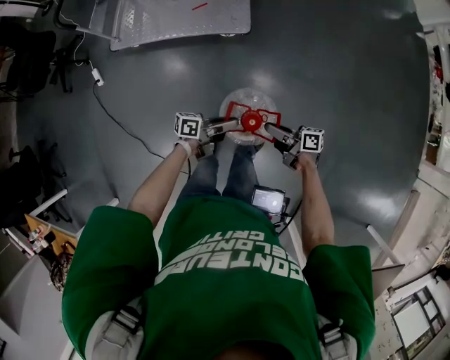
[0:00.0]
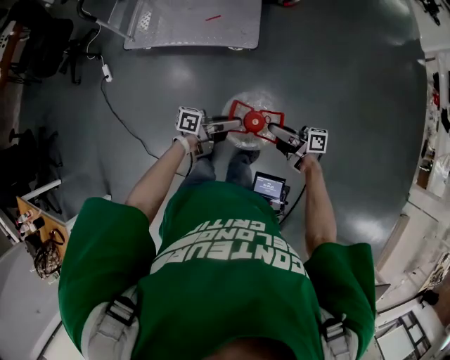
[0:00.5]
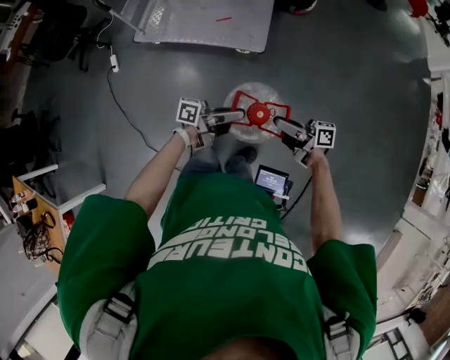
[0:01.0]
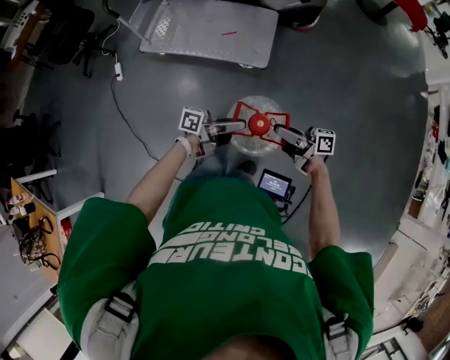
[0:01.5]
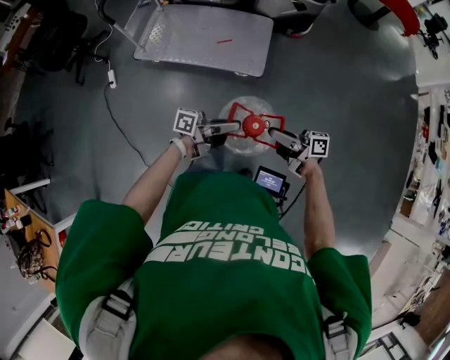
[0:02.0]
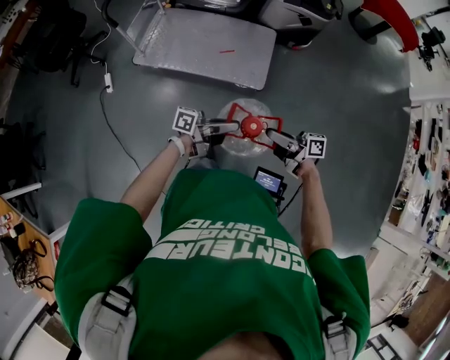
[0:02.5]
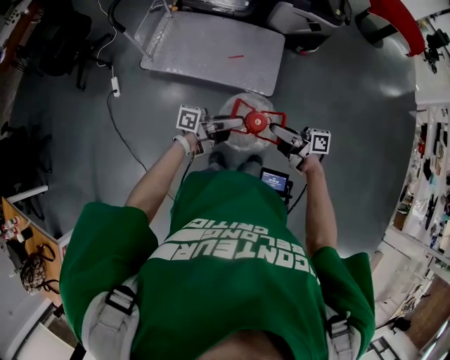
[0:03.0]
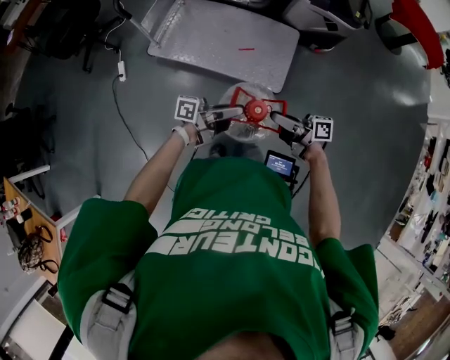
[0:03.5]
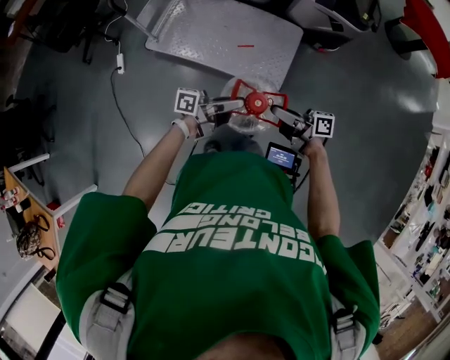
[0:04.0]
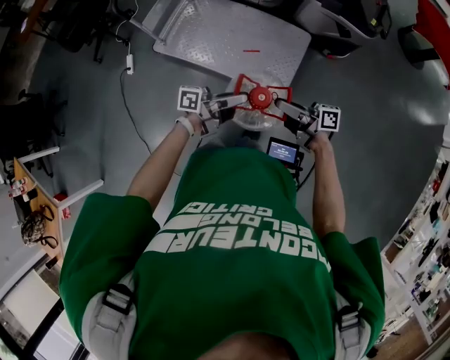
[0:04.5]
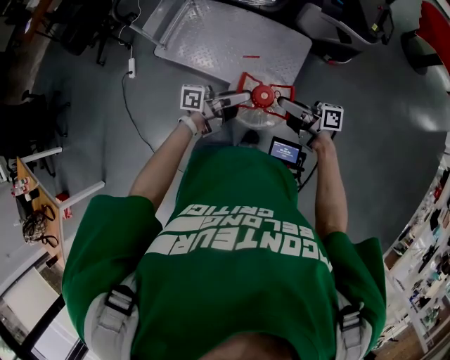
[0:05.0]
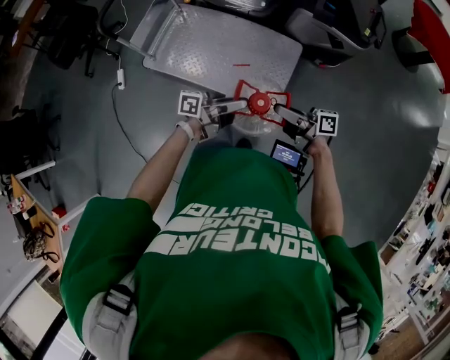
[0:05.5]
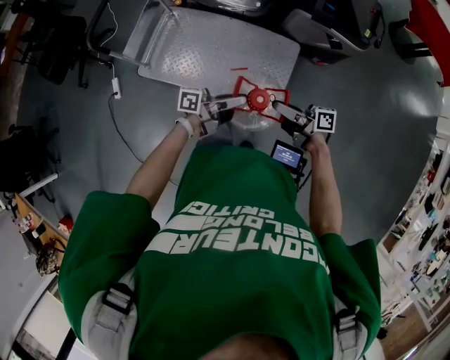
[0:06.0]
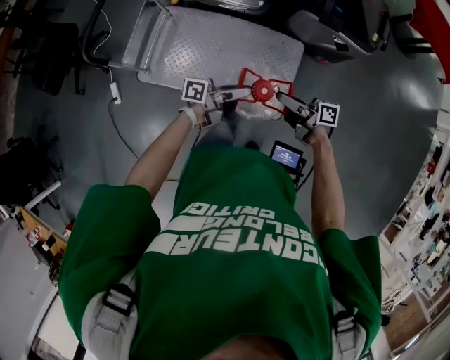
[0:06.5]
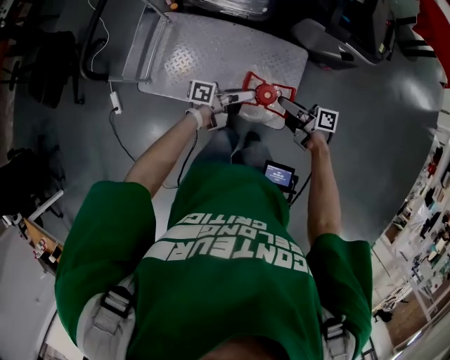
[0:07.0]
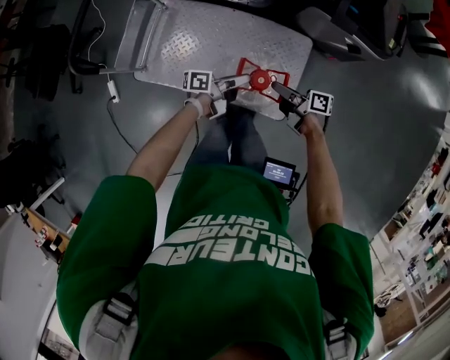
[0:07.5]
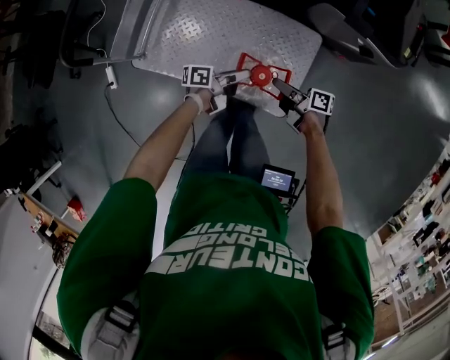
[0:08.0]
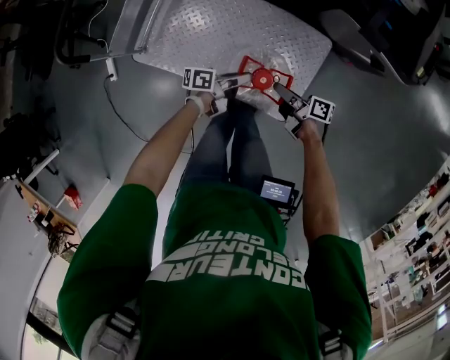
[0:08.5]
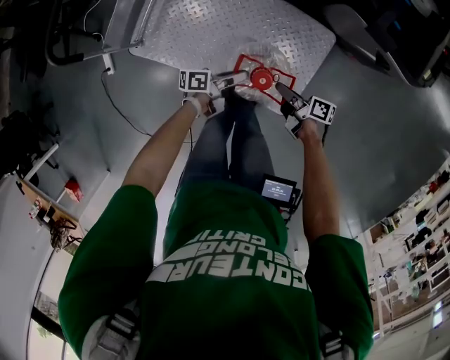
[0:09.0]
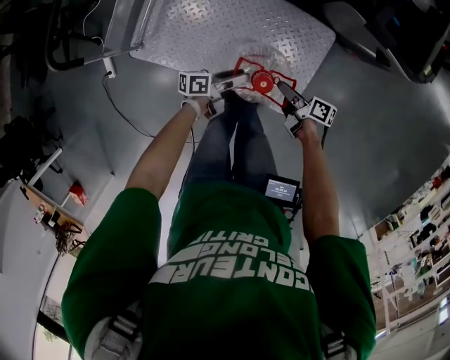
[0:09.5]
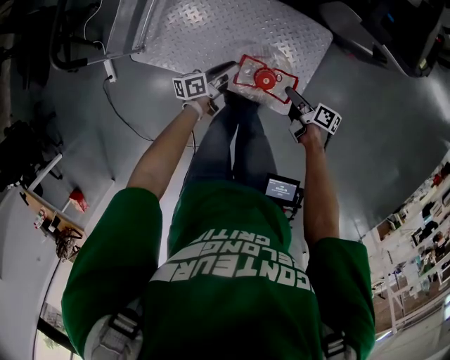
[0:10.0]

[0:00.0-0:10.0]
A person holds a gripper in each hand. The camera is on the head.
0:00.0 to 0:02.0: The two grippers go about 15 cm upward.
0:02.0 to 0:04.0: The left gripper moves approximately 25 cm; the right gripper changes place by approximately 25 cm.
0:04.0 to 0:06.0: The left gripper ends up some 25 cm from where it was; the right gripper changes place by roughly 25 cm.
0:06.0 to 0:08.0: The right gripper moves roughly 25 cm. Meanwhile the left gripper shifts by some 30 cm, and swivels some 20 degrees.
0:08.0 to 0:10.0: The right gripper heads downward and to the right, covering some 10 cm, turns by some 20 degrees, and opens up; the left gripper shifts roughly 10 cm downward and to the left, and changes its angle by approximately 20 degrees.

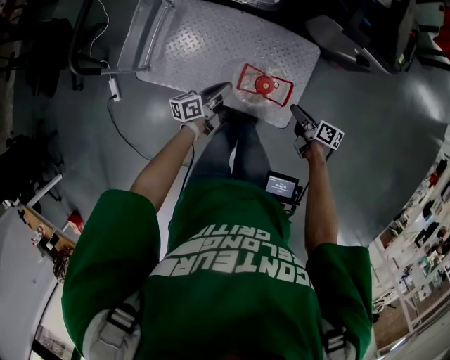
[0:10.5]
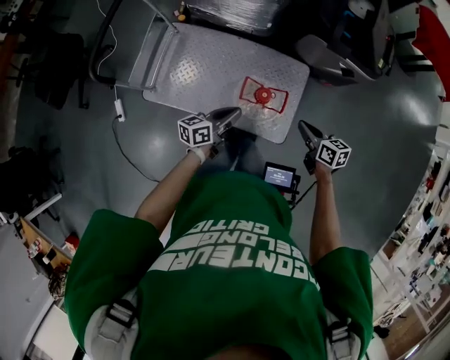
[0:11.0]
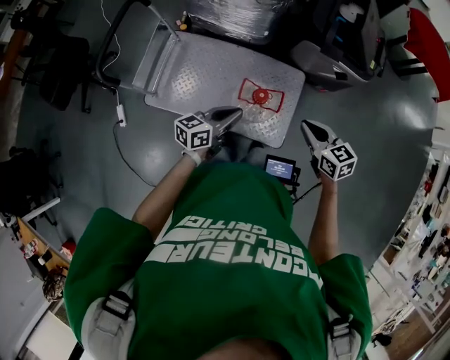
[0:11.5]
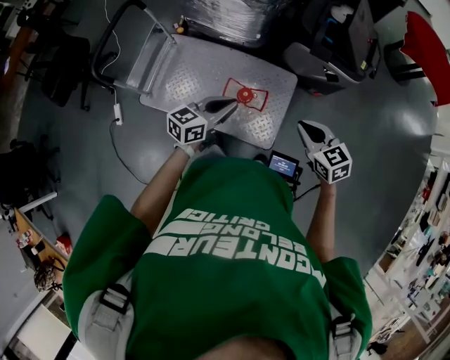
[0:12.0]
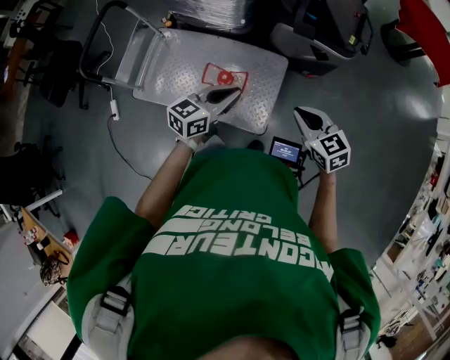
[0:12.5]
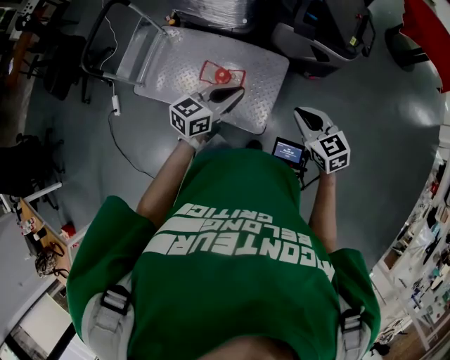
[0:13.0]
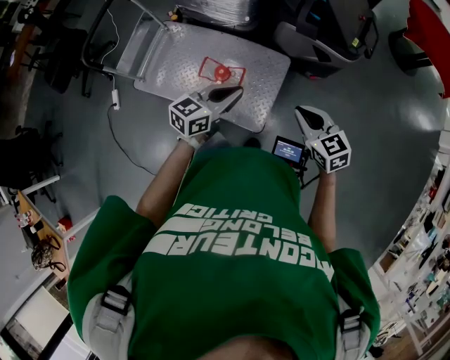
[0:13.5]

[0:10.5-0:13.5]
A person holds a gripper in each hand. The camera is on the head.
0:10.5 to 0:12.0: Both grippers move upward, approximately 25 cm. The left gripper turns by roughly 40 degrees; the right gripper rolls counterclockwise, seen from behind, by approximately 70 degrees, and closes up.
0:12.0 to 0:13.5: The grippers both shift to the right by approximately 15 cm.

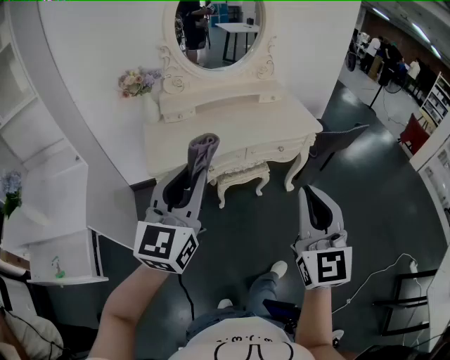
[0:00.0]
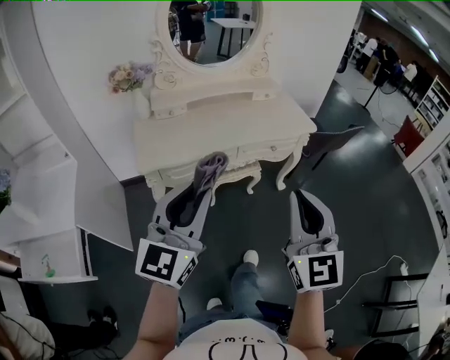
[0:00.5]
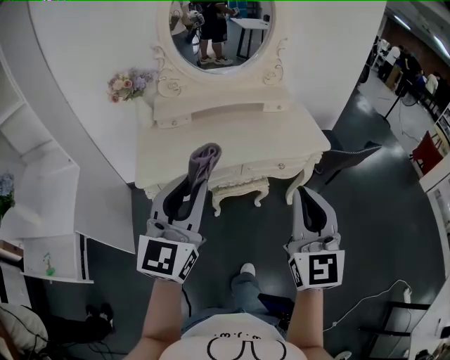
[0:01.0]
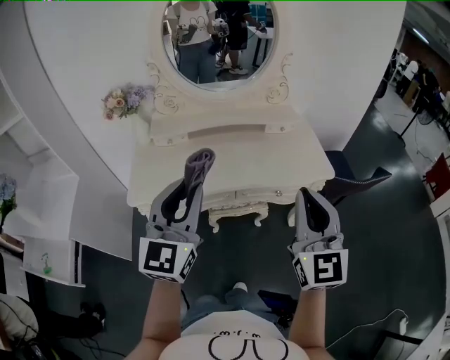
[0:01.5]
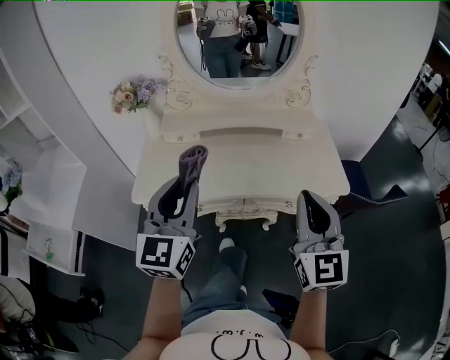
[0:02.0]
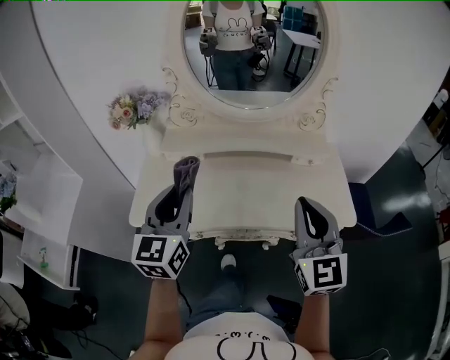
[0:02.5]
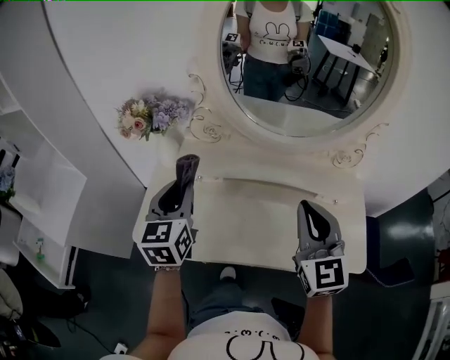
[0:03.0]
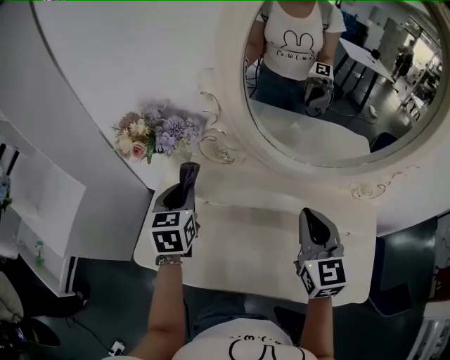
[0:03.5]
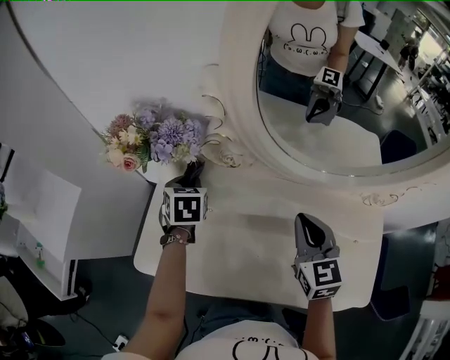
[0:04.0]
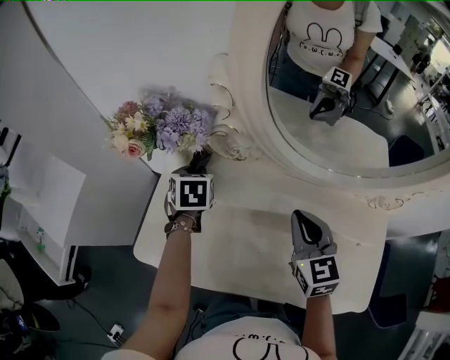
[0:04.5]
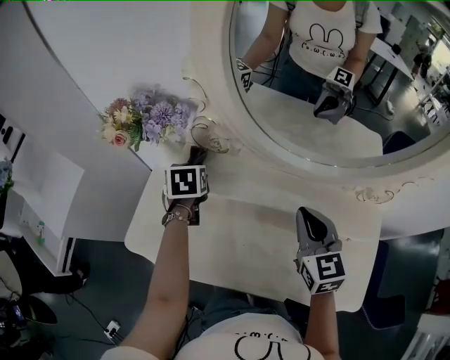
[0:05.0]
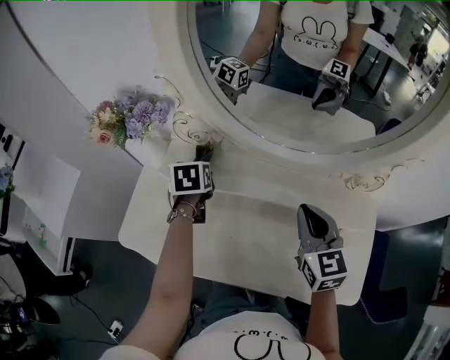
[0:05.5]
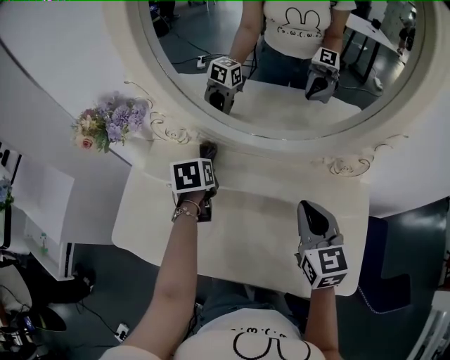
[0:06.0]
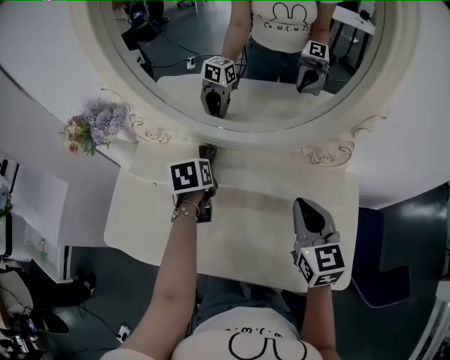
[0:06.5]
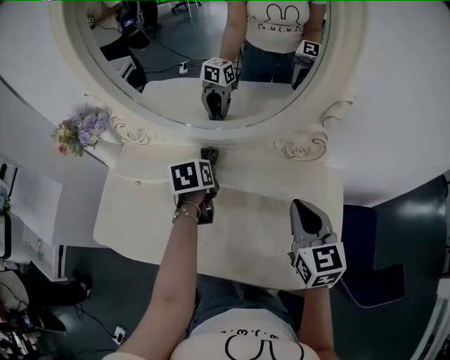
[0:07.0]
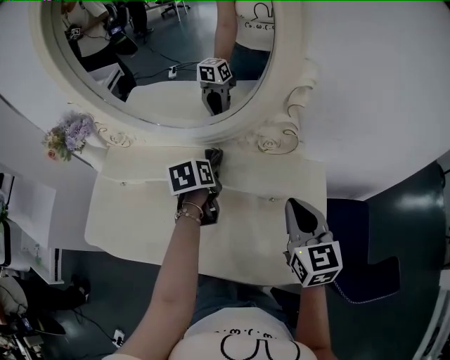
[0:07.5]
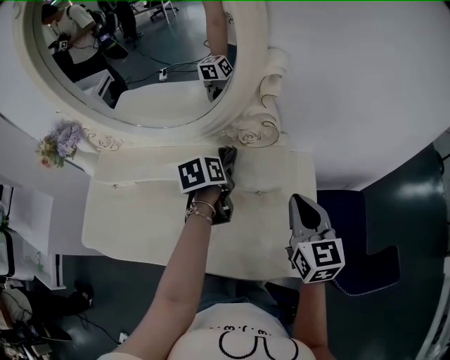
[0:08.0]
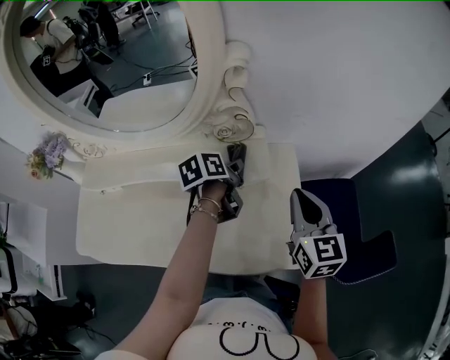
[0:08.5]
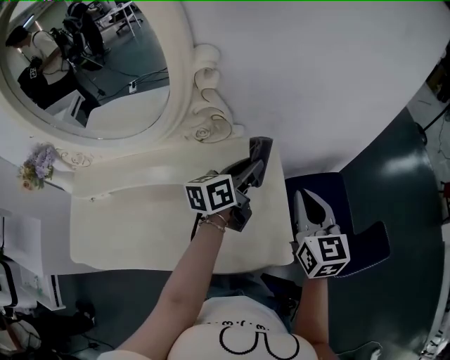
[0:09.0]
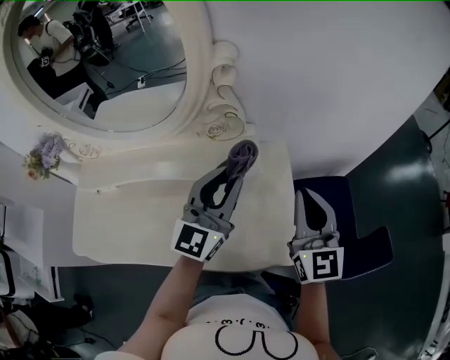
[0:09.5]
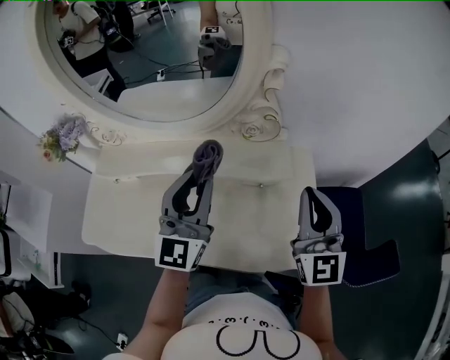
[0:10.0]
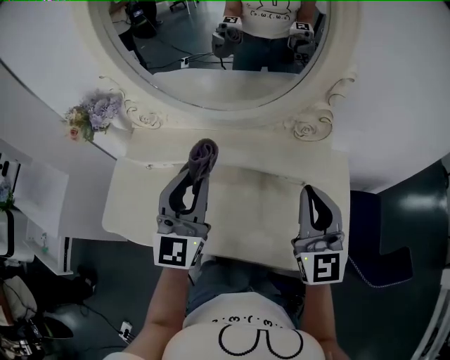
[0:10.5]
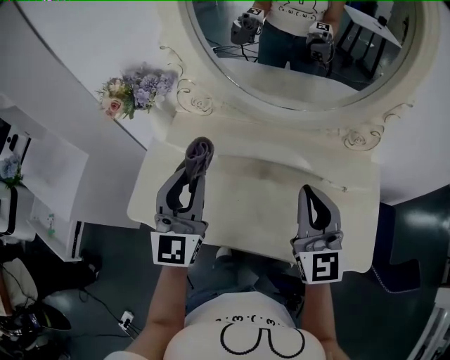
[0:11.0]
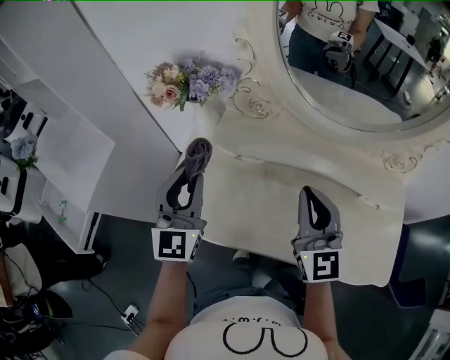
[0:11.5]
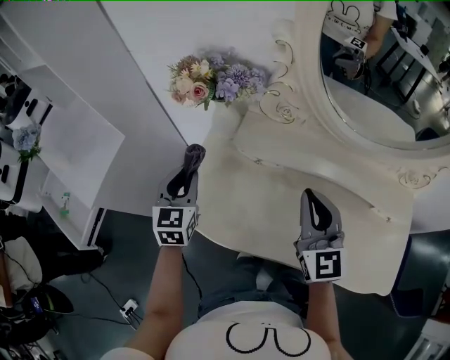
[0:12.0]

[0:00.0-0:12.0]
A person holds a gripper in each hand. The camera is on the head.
0:00.0 to 0:02.0: The grippers both shift forward by some 30 cm. The left gripper rotates some 20 degrees.
0:02.0 to 0:04.0: Both grippers are carried forward, some 50 cm. The left gripper travels downward by roughly 25 cm, and tips its fingers downward by about 50 degrees. The right gripper rotates roughly 30 degrees.
0:04.0 to 0:06.0: The left gripper is displaced to the right by about 20 cm. The right gripper travels to the right and backward by roughly 20 cm.
0:06.0 to 0:08.0: Both grippers move to the right, approximately 30 cm.
0:08.0 to 0:10.0: The left gripper moves upward and backward, some 25 cm, moves about 20 cm to the right and comes back, and points its fingers some 50 degrees further upward; the right gripper travels upward by approximately 10 cm, moves approximately 10 cm to the right and comes back, and rotates some 30 degrees.
0:10.0 to 0:12.0: The pair of grippers is taken about 60 cm. The right gripper swivels some 30 degrees; the left gripper angles its fingers downward, by roughly 30 degrees.

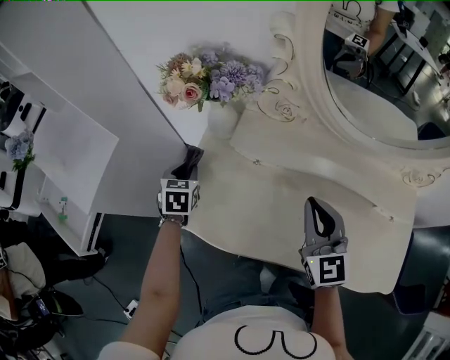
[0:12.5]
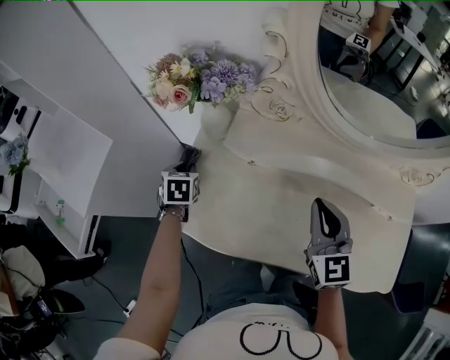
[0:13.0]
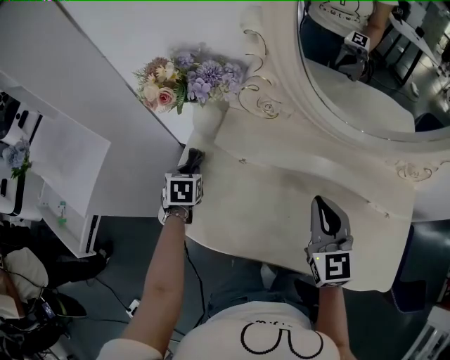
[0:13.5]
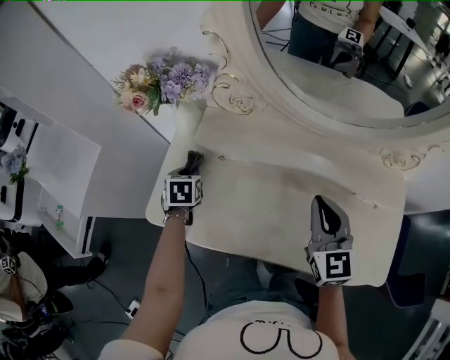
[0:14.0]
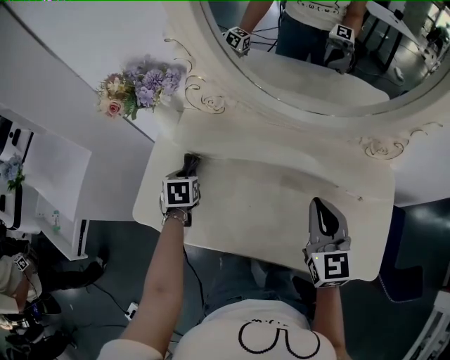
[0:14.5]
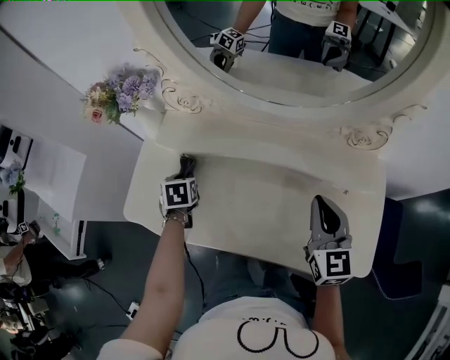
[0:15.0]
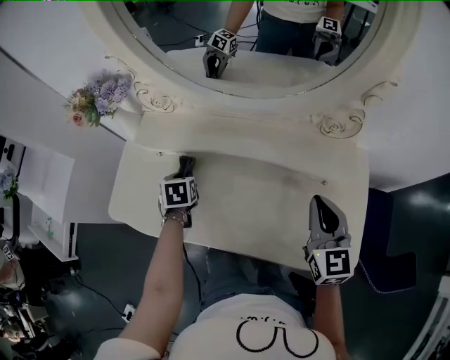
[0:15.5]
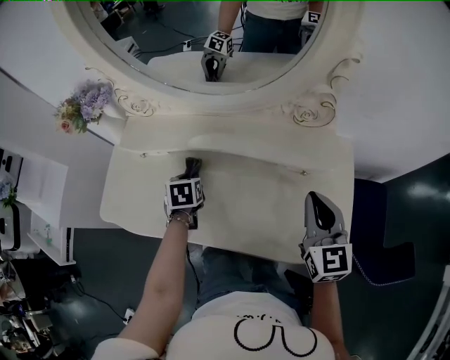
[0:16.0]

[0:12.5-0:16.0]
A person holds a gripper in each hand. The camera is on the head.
0:12.5 to 0:14.5: Both grippers move to the right, some 20 cm.
0:14.5 to 0:16.0: The left gripper shifts roughly 25 cm to the right, while the right gripper heads to the right and backward, covering approximately 20 cm.
